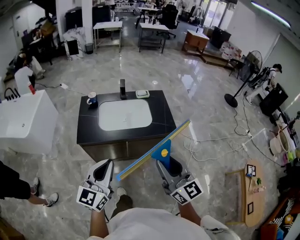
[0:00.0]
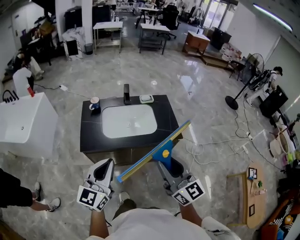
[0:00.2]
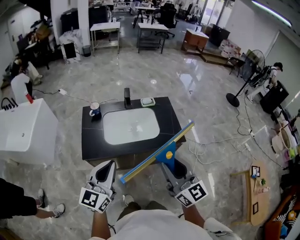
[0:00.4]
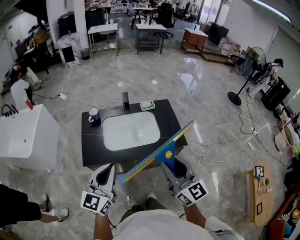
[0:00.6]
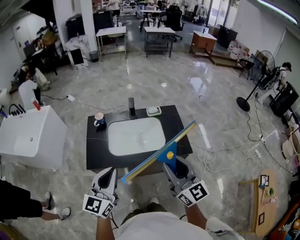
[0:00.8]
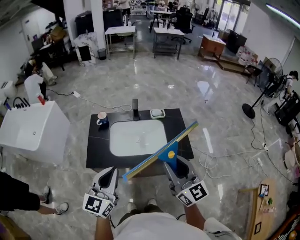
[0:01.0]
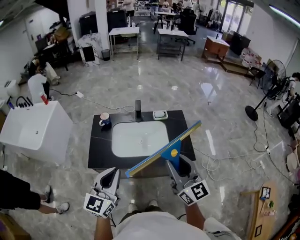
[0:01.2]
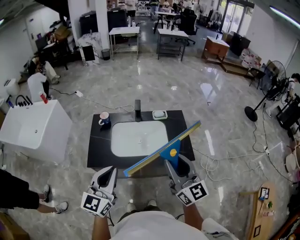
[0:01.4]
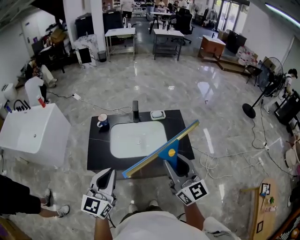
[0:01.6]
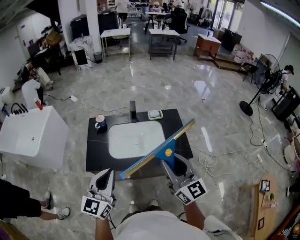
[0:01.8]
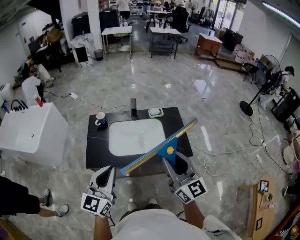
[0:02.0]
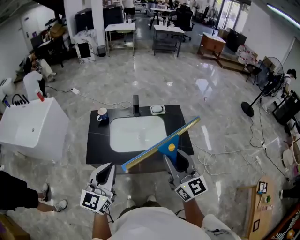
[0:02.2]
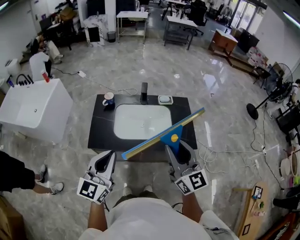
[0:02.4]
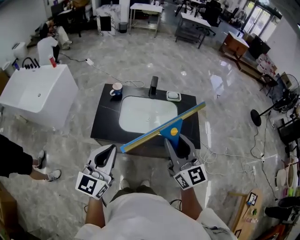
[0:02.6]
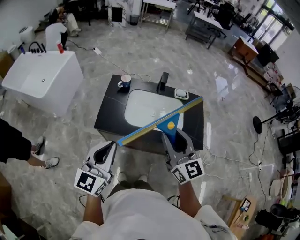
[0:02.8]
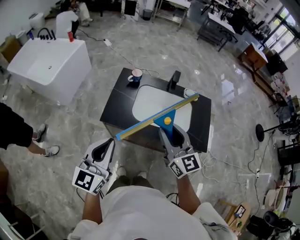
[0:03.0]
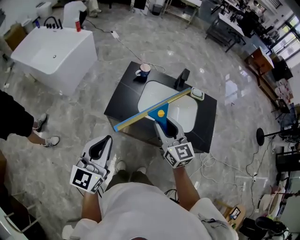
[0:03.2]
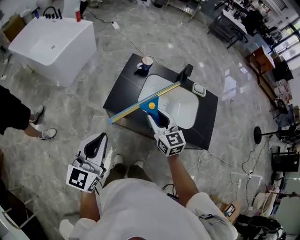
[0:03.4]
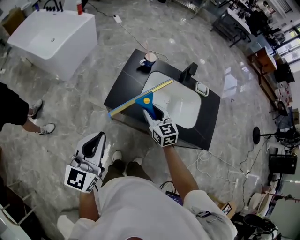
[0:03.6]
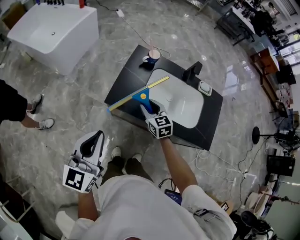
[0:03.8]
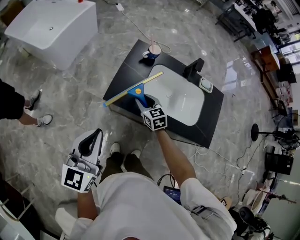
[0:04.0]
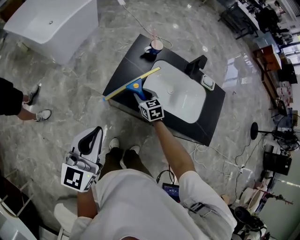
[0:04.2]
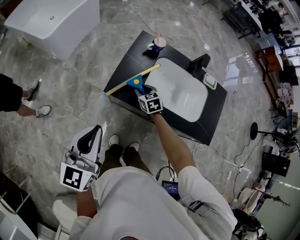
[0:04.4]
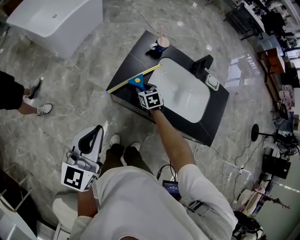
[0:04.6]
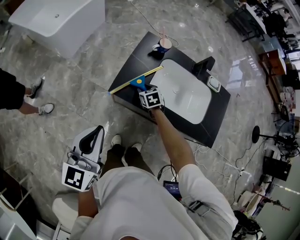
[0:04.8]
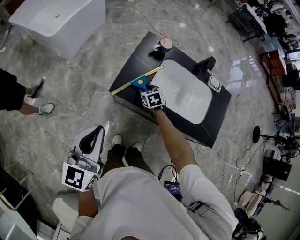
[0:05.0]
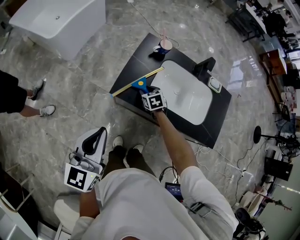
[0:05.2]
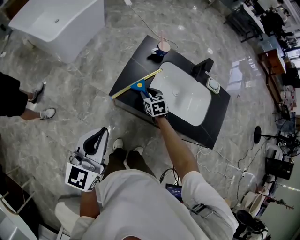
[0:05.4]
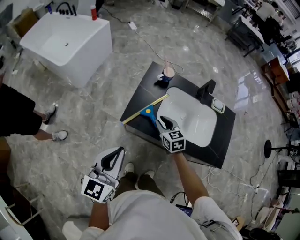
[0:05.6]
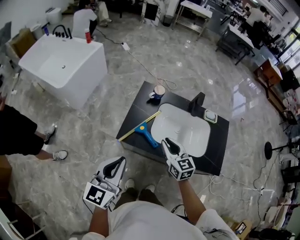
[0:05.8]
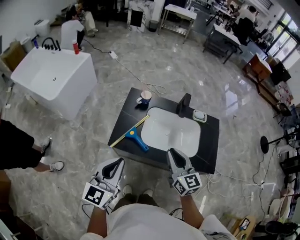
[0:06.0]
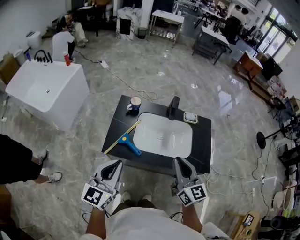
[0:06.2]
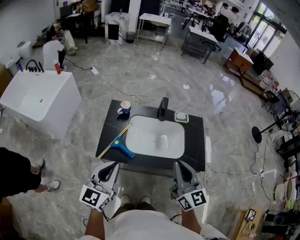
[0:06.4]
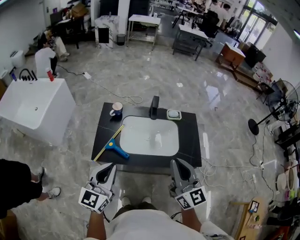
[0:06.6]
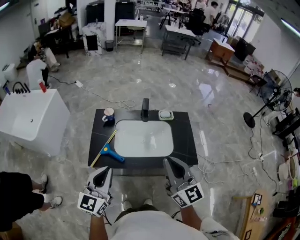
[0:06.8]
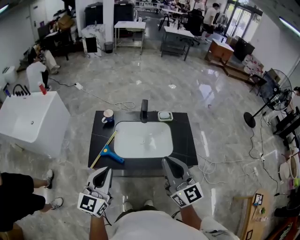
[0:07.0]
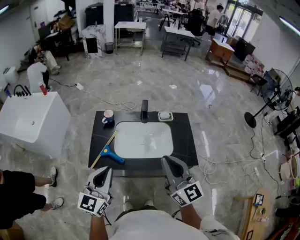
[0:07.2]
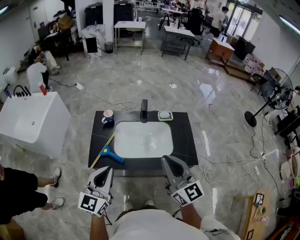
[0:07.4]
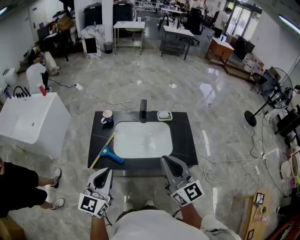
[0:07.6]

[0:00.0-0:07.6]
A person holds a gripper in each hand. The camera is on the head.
0:00.0 to 0:01.6: The grippers both shift forward by approximately 20 cm.
0:01.6 to 0:03.0: The right gripper shifts about 15 cm to the left and forward. The left gripper moves to the left, approximately 10 cm.
0:03.0 to 0:04.6: The right gripper shifts about 40 cm downward and forward, and tilts its fingers roughly 50 degrees downward. The left gripper moves to the left and downward, approximately 10 cm.
0:04.6 to 0:06.0: The left gripper goes some 10 cm to the right. The right gripper goes some 35 cm upward, backward and to the right, points its fingers some 40 degrees further upward, and closes up.
0:06.0 to 0:07.6: The right gripper is displaced upward, to the right and backward by roughly 20 cm, while the left gripper shifts some 10 cm to the right.

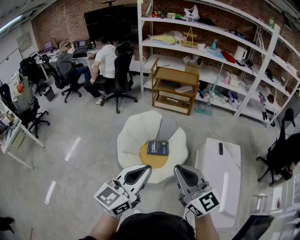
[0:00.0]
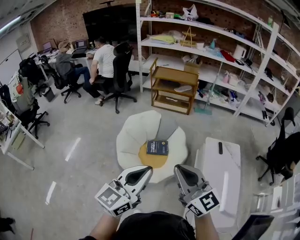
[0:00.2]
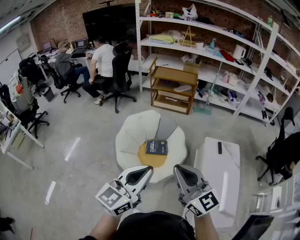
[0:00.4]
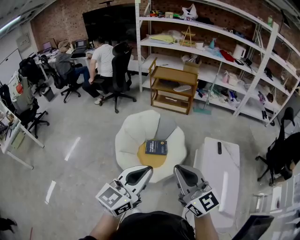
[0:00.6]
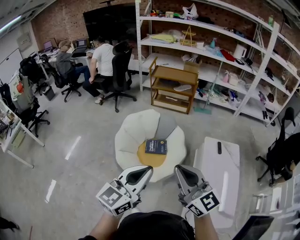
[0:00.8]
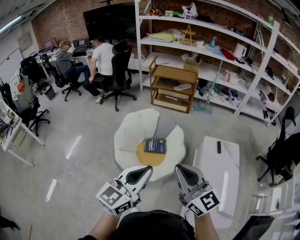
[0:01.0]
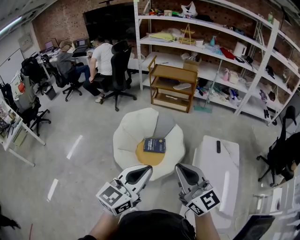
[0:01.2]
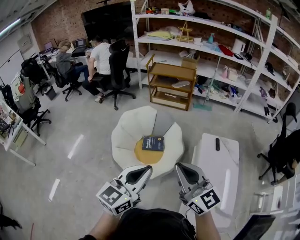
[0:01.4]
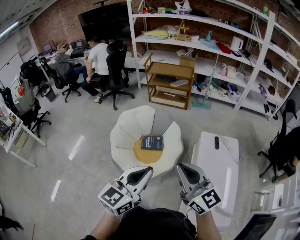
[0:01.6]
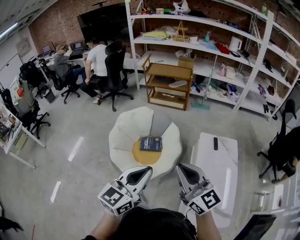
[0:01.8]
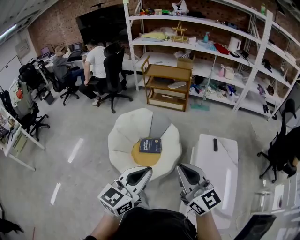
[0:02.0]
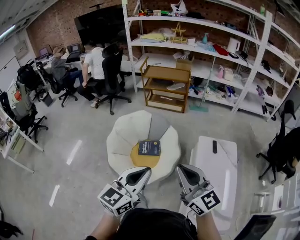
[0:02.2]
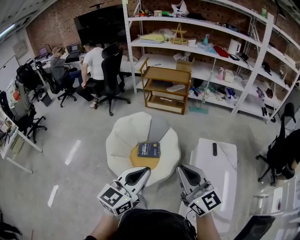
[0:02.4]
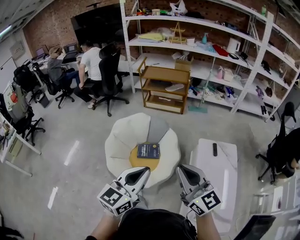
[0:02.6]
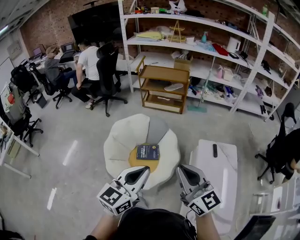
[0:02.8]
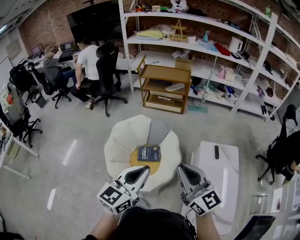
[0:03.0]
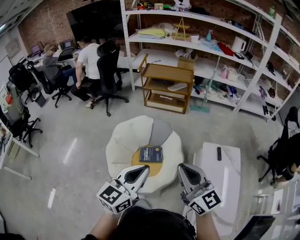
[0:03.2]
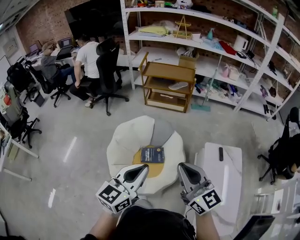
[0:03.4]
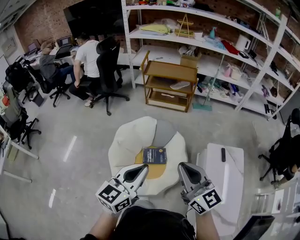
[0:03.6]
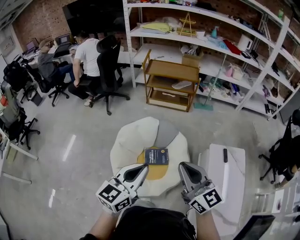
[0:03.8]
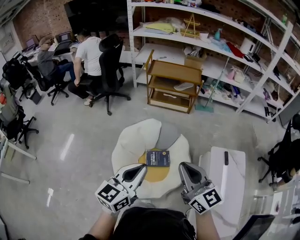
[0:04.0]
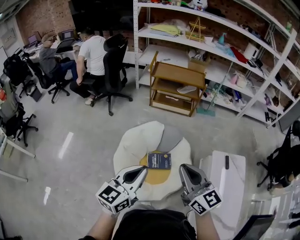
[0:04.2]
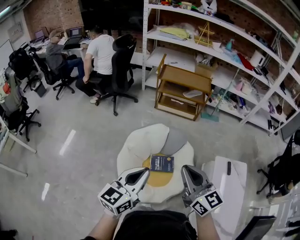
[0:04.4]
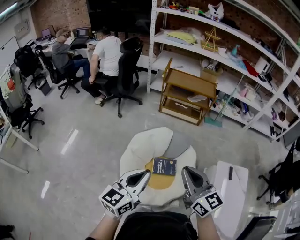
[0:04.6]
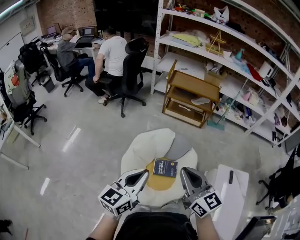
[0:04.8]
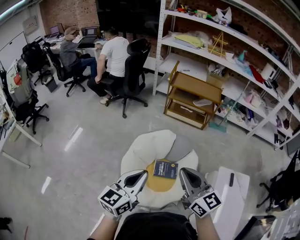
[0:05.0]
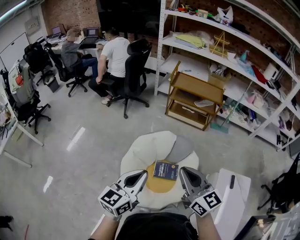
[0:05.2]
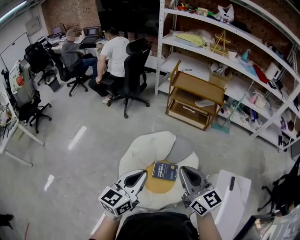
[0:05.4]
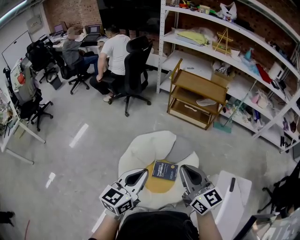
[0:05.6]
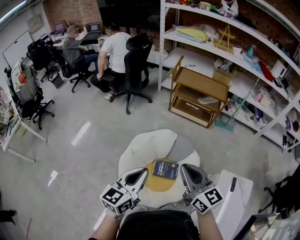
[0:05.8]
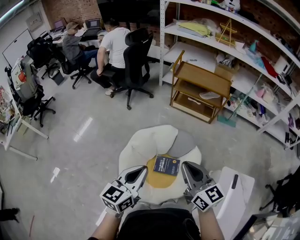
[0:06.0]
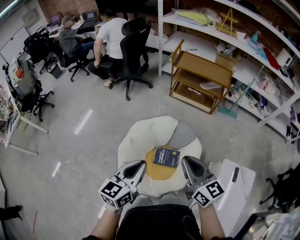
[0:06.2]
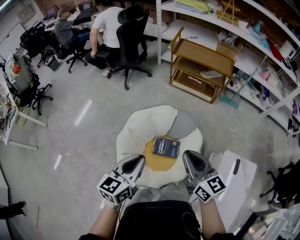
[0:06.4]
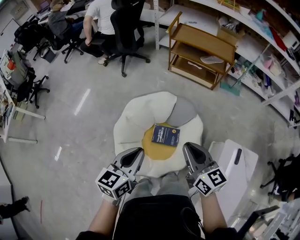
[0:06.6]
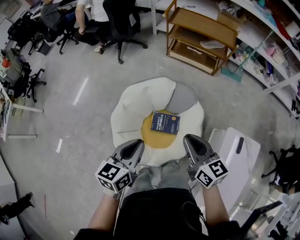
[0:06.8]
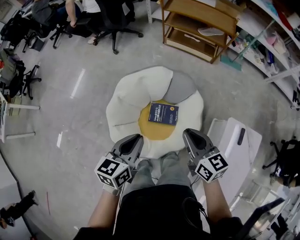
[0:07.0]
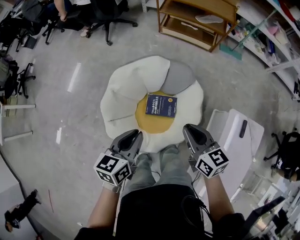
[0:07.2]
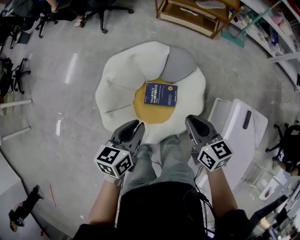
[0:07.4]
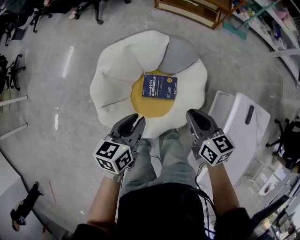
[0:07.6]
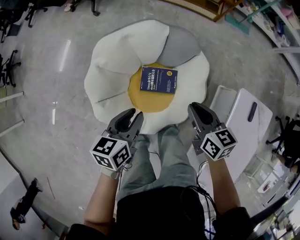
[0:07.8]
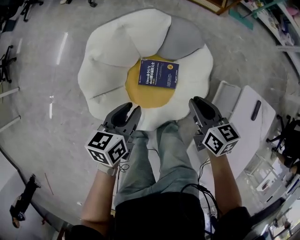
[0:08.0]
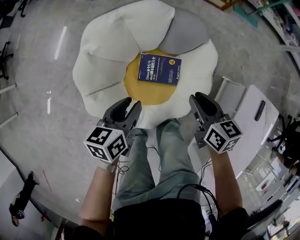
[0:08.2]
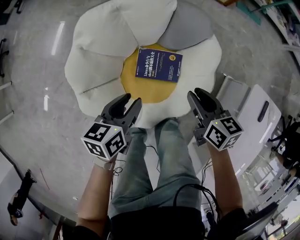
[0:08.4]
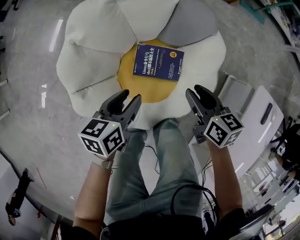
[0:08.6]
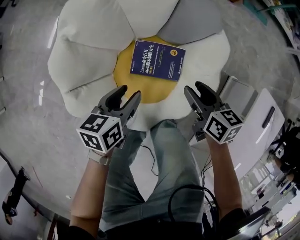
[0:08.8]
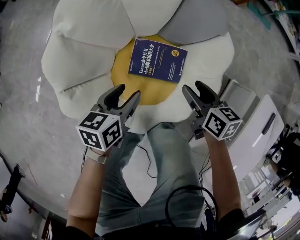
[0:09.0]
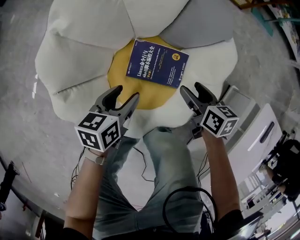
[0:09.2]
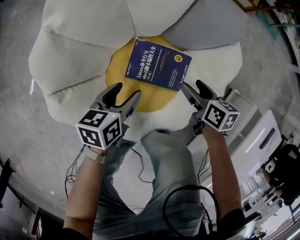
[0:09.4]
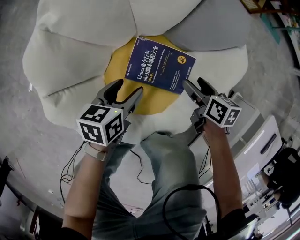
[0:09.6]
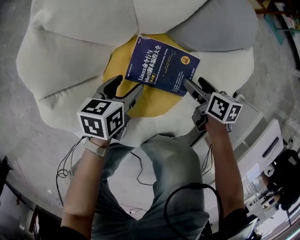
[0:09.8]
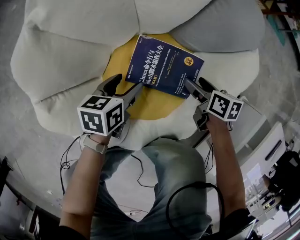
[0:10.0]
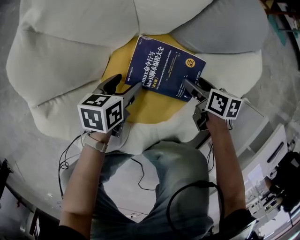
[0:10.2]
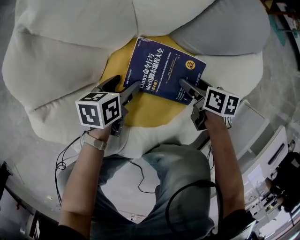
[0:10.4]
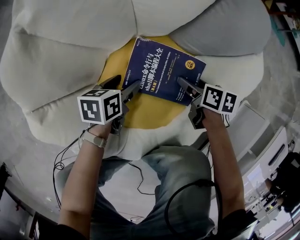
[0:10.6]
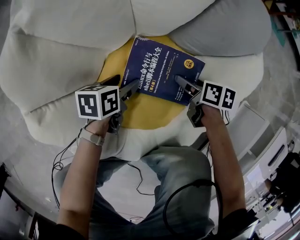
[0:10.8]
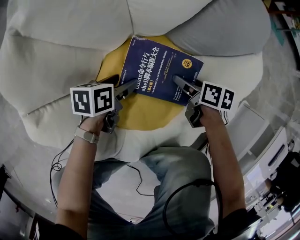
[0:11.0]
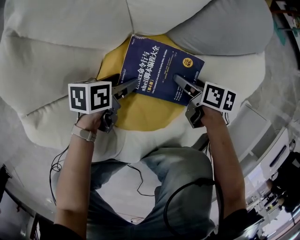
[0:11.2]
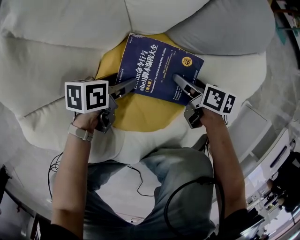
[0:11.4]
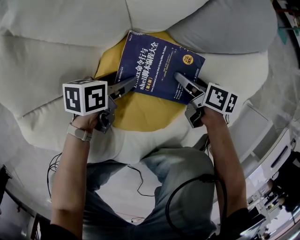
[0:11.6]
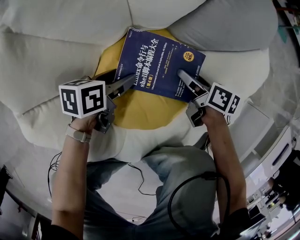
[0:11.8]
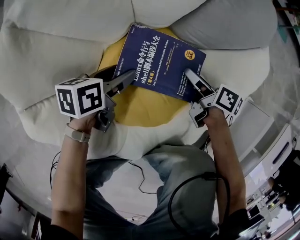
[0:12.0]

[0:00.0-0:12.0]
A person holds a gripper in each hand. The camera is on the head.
0:00.0 to 0:01.6: Both grippers move to the right, roughly 15 cm.
0:01.6 to 0:03.0: The grippers both shift forward by about 15 cm.
0:03.0 to 0:04.4: Both grippers move to the left and forward, approximately 25 cm.
0:04.4 to 0:06.0: The left gripper is displaced forward by about 5 cm; the right gripper moves forward and to the right, approximately 10 cm.
0:06.0 to 0:07.6: Both grippers travel together downward, about 30 cm. The right gripper swivels roughly 30 degrees. The left gripper swivels some 30 degrees.
0:07.6 to 0:09.0: The grippers both shift downward by some 35 cm. The left gripper opens up; the right gripper opens.
0:09.0 to 0:10.4: Both grippers travel together downward, approximately 25 cm.
0:10.4 to 0:12.0: The right gripper swivels about 20 degrees.

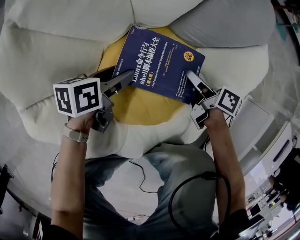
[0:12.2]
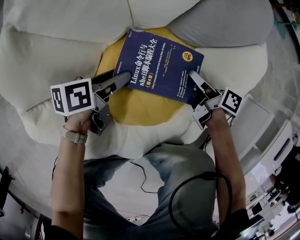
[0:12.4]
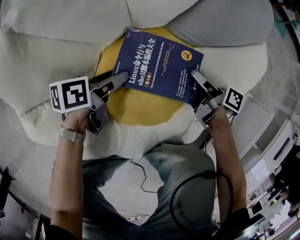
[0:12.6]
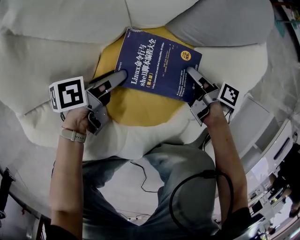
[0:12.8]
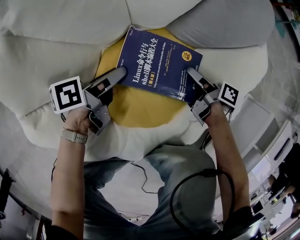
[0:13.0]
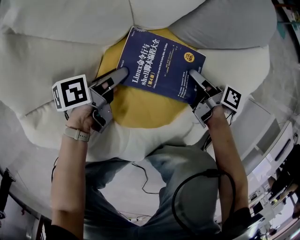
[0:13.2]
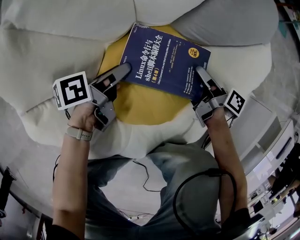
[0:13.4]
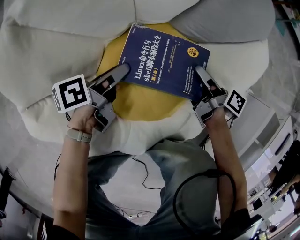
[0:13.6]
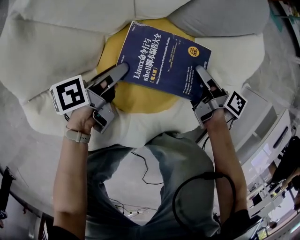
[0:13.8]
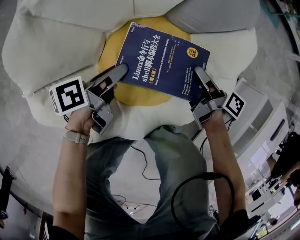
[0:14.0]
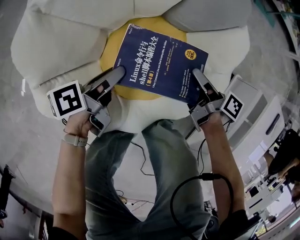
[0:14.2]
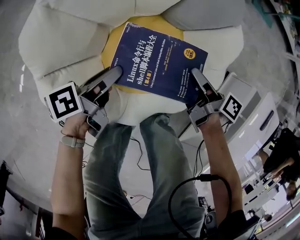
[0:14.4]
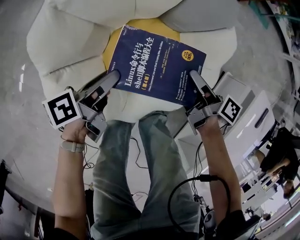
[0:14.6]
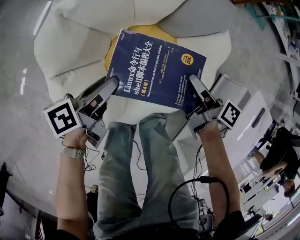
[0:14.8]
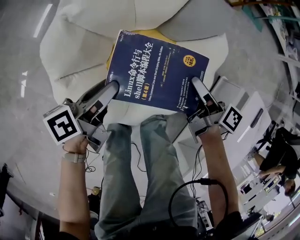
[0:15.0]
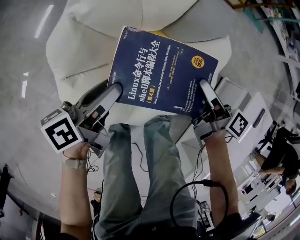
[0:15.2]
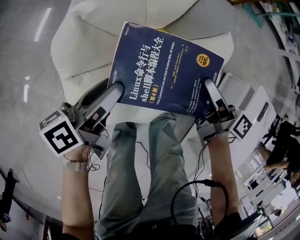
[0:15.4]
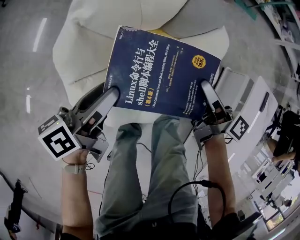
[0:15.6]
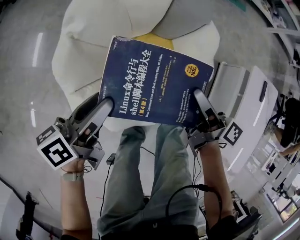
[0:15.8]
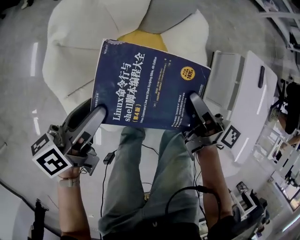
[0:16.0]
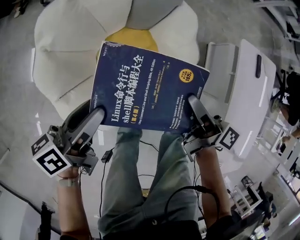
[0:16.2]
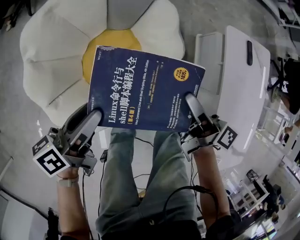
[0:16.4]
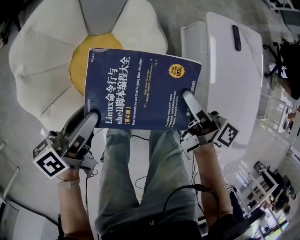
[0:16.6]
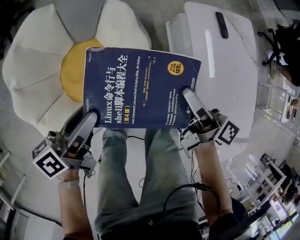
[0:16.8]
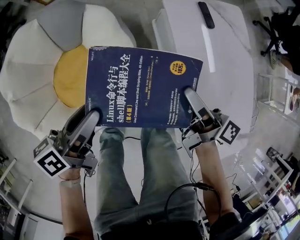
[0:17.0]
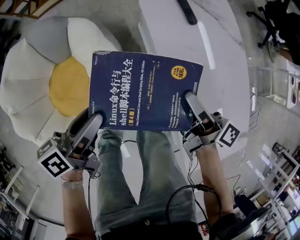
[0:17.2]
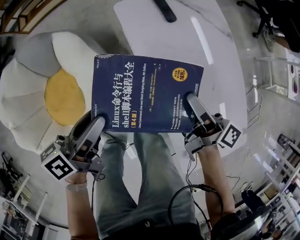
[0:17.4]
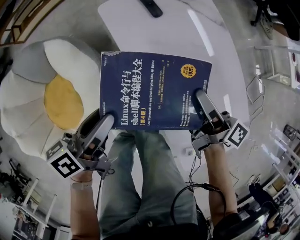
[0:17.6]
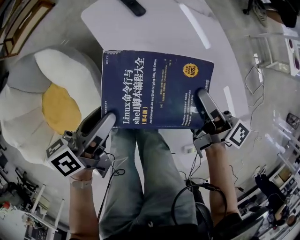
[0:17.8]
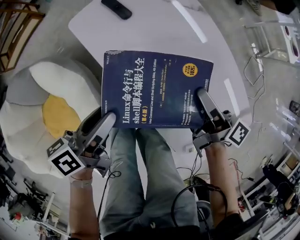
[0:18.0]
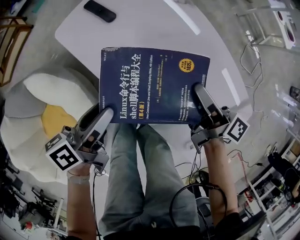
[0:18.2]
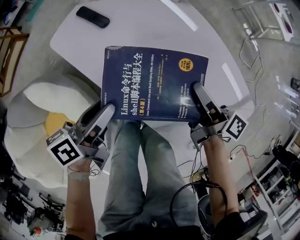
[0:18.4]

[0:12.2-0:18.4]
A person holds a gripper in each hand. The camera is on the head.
0:12.2 to 0:13.8: The left gripper rotates roughly 30 degrees.
0:13.8 to 0:18.4: The grippers move only a little.
